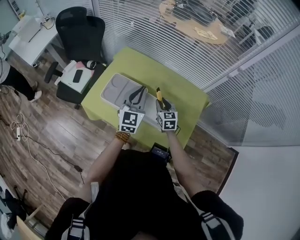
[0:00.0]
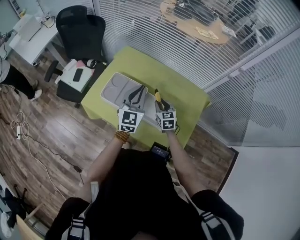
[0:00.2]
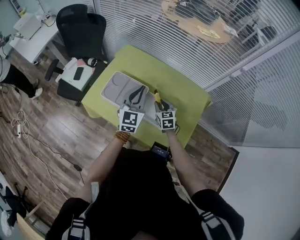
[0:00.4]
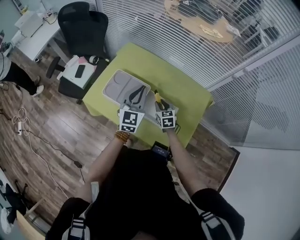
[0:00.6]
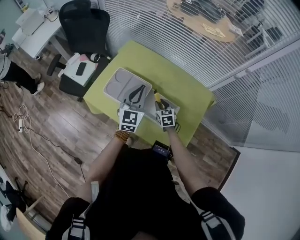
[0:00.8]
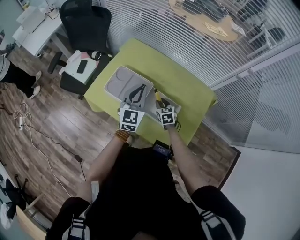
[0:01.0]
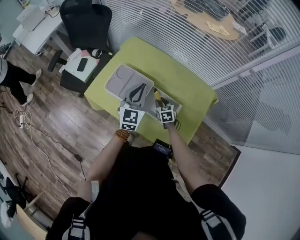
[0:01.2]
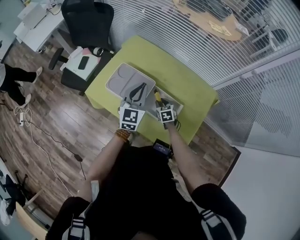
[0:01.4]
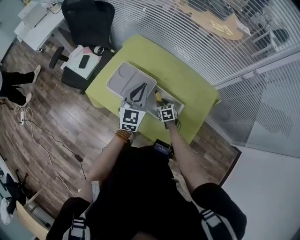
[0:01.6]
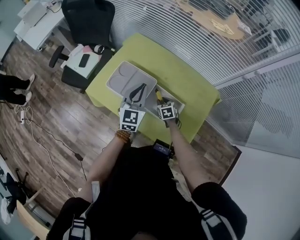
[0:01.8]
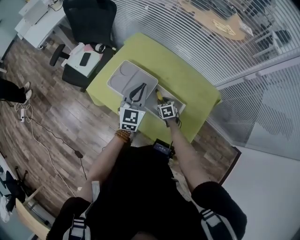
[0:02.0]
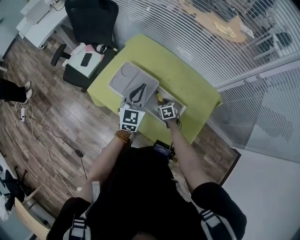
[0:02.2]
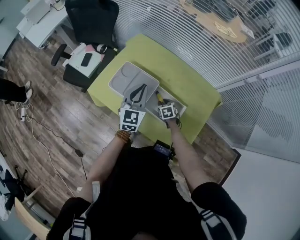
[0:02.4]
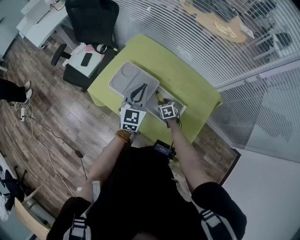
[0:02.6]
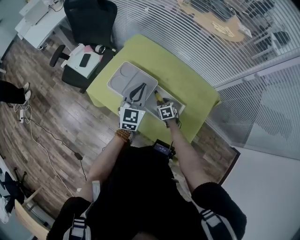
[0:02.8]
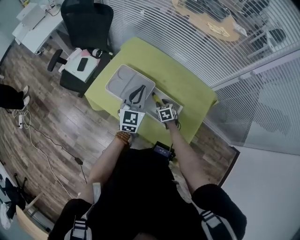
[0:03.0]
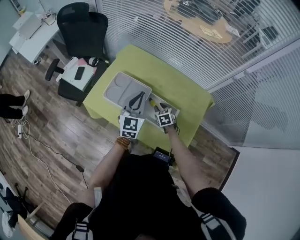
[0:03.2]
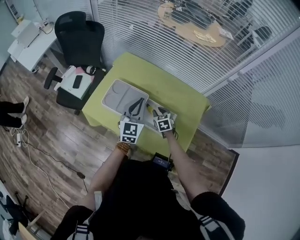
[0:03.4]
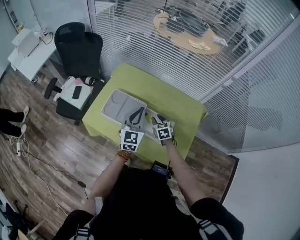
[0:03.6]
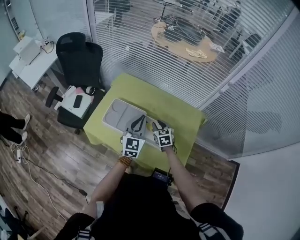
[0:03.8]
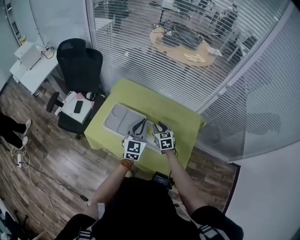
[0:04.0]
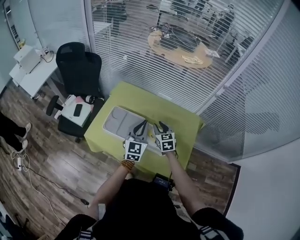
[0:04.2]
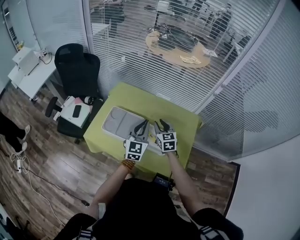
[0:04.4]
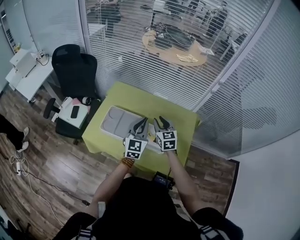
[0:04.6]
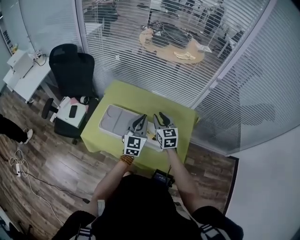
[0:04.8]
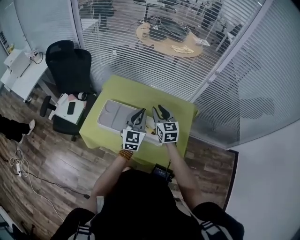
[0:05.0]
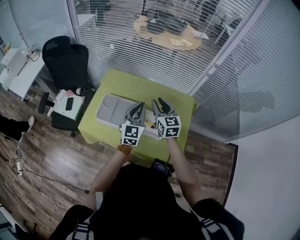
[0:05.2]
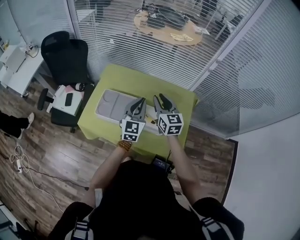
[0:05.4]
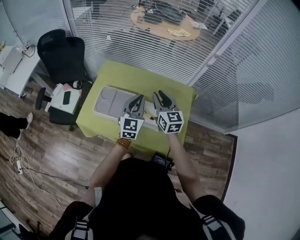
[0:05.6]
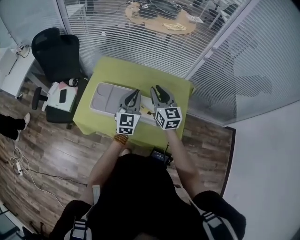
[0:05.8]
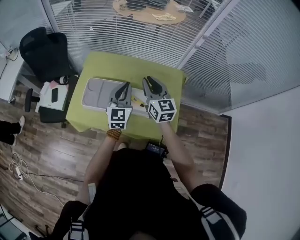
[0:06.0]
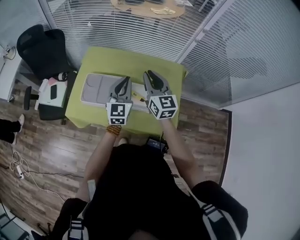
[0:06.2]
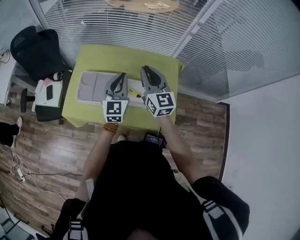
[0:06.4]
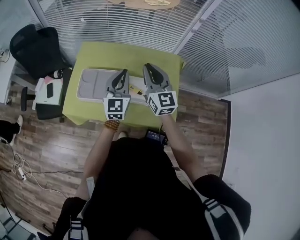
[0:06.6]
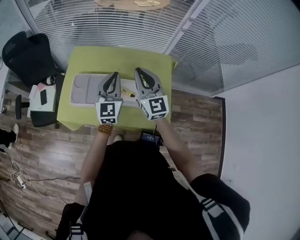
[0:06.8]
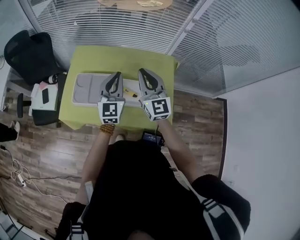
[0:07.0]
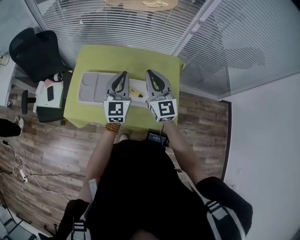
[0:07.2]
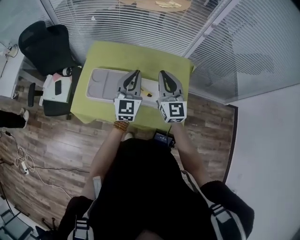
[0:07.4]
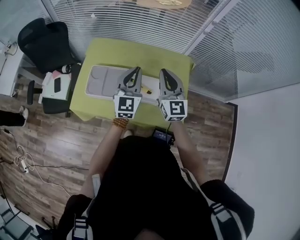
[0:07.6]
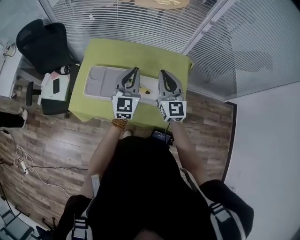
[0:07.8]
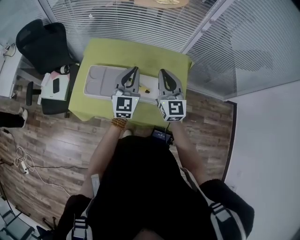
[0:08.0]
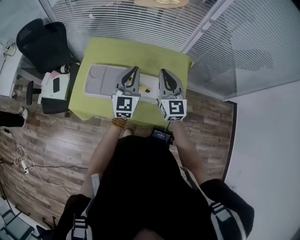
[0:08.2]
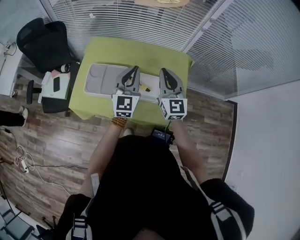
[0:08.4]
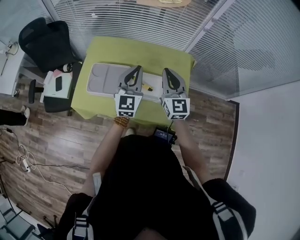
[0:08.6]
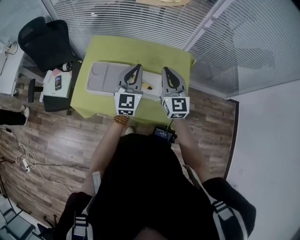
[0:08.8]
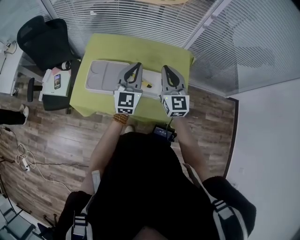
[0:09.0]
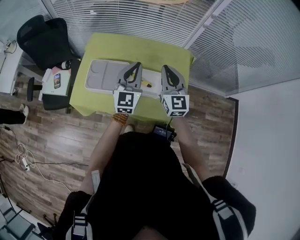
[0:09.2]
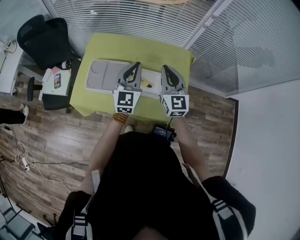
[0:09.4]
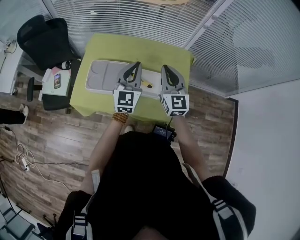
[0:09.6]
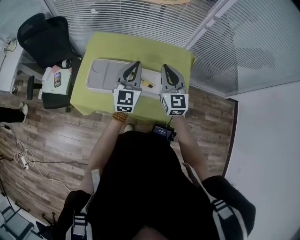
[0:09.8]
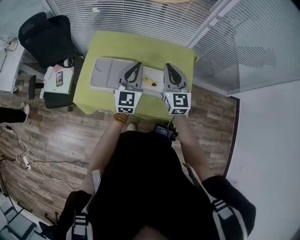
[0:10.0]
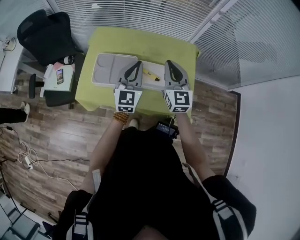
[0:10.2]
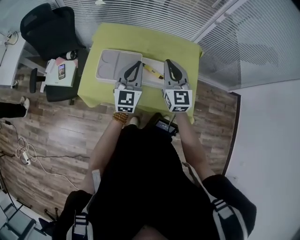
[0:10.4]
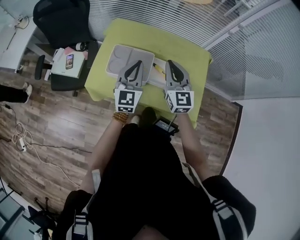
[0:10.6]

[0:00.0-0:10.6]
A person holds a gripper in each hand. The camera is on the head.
0:00.0 to 0:01.6: The right gripper goes approximately 15 cm downward, and rotates about 20 degrees.
0:01.6 to 0:03.0: There are only small adjustments of the grippers.
0:03.0 to 0:04.6: The right gripper goes some 25 cm upward, and angles its fingers upward, by approximately 30 degrees, while the left gripper goes approximately 5 cm to the right.
0:04.6 to 0:06.0: The right gripper travels upward by about 10 cm.
0:06.0 to 0:09.0: The grippers make only small movements.
0:09.0 to 0:10.6: The two grippers go about 10 cm to the left.

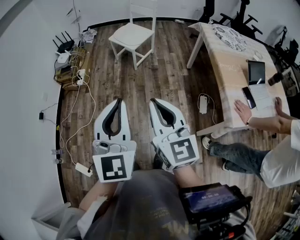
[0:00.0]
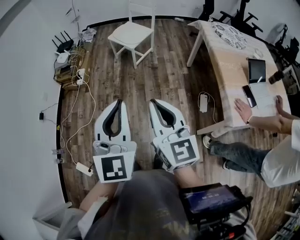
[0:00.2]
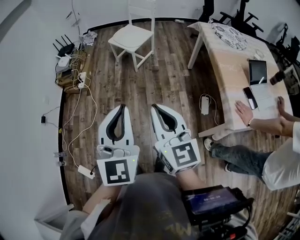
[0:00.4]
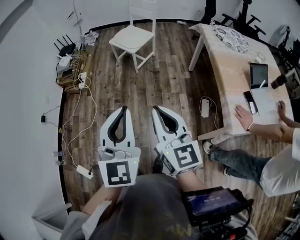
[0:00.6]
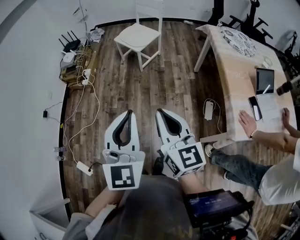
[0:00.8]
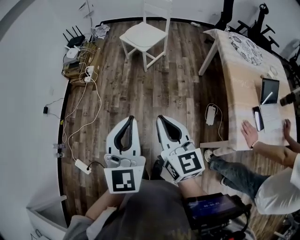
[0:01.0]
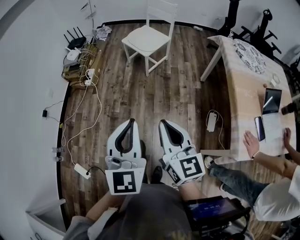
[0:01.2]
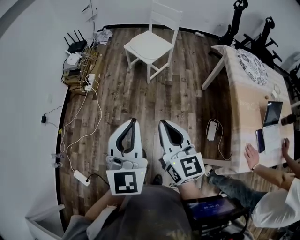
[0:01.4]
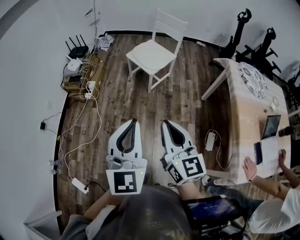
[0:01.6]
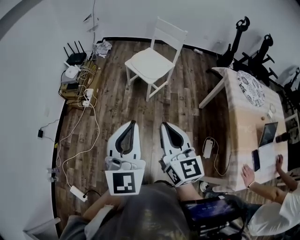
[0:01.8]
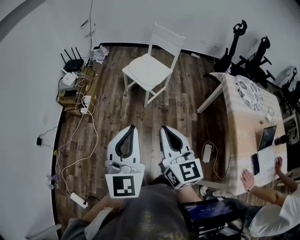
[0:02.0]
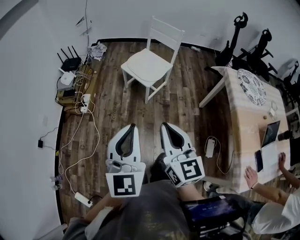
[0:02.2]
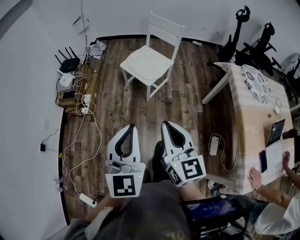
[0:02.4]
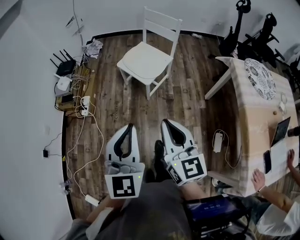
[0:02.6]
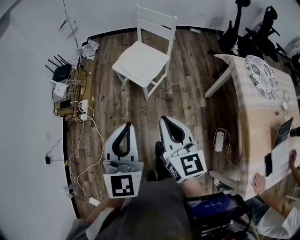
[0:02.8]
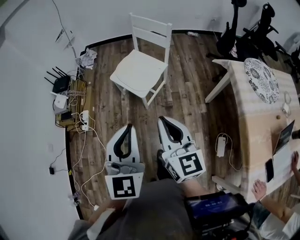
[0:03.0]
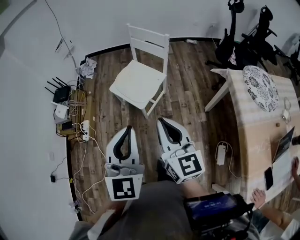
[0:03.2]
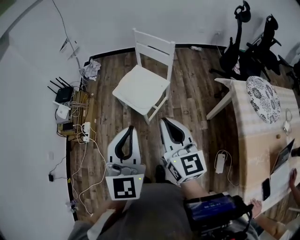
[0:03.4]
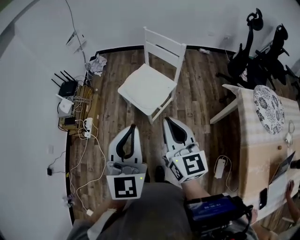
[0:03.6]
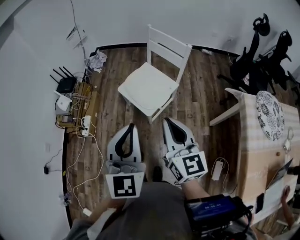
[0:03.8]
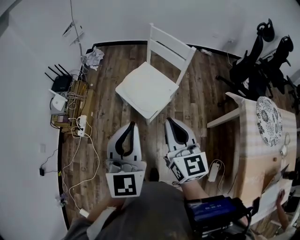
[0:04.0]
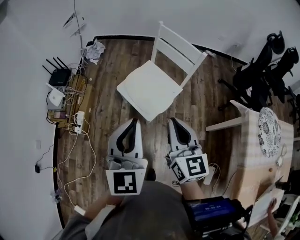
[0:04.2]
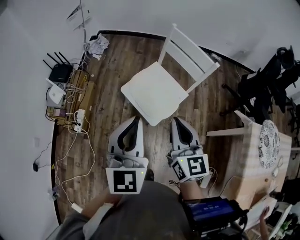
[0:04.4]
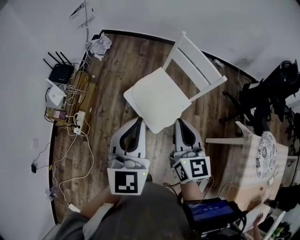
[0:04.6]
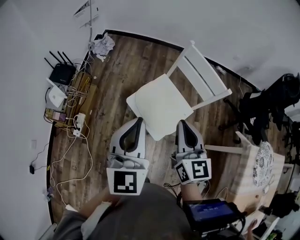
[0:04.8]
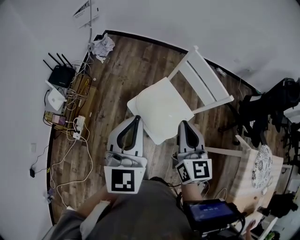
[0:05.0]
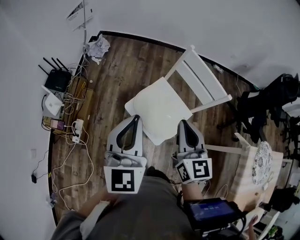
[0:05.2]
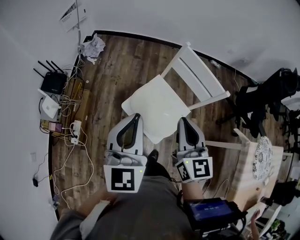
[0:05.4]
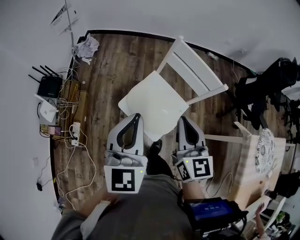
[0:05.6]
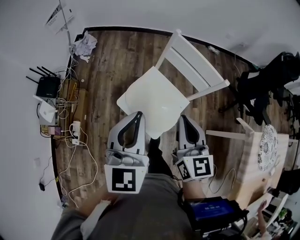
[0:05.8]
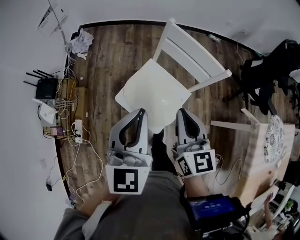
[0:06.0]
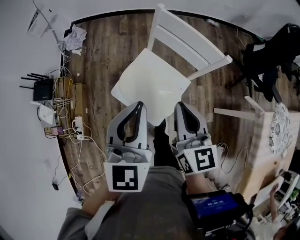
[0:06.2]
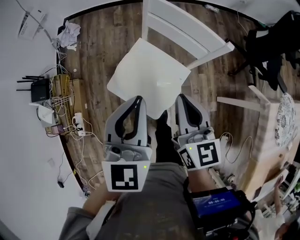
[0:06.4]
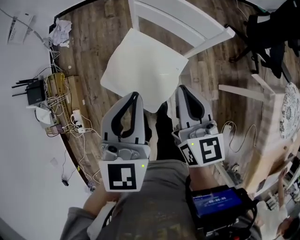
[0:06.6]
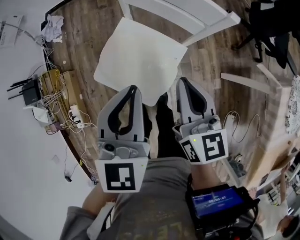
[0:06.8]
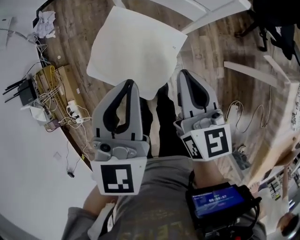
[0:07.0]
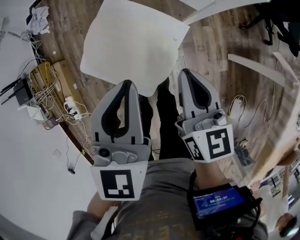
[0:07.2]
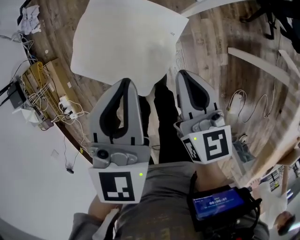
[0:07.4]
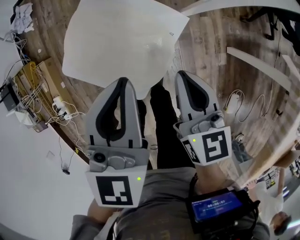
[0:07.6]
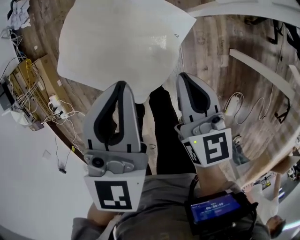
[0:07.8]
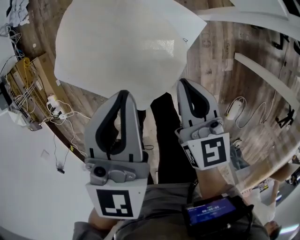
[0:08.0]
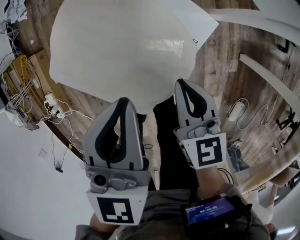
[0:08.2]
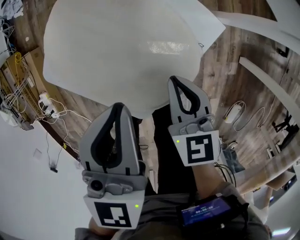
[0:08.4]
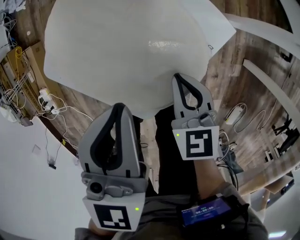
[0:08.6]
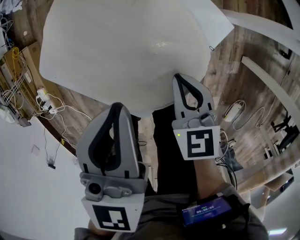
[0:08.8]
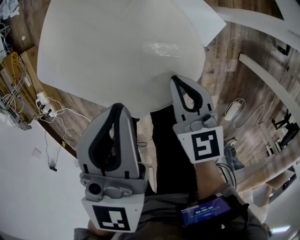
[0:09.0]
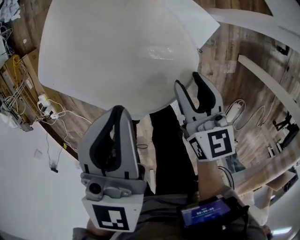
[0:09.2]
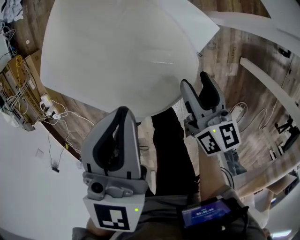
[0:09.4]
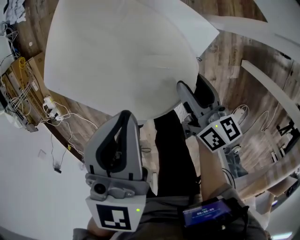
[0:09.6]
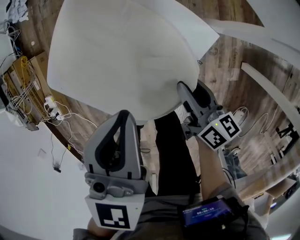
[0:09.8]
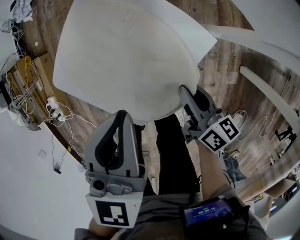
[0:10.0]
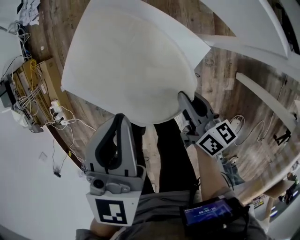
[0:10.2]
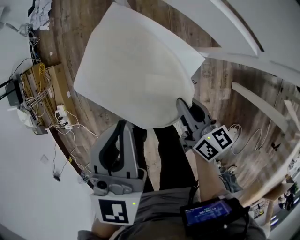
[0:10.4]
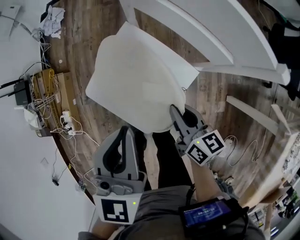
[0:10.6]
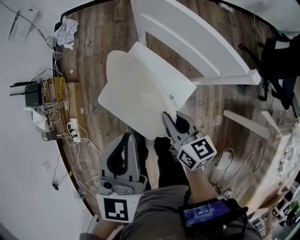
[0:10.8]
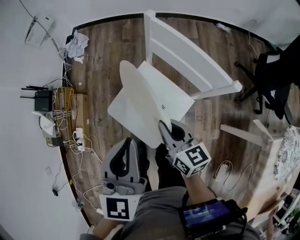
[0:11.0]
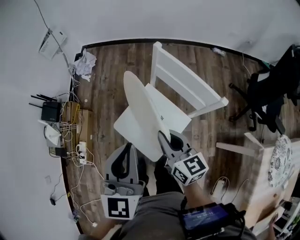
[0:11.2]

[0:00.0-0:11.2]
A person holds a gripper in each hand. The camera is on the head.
0:00.0 to 0:01.6: The grippers both shift forward by roughly 20 cm.
0:01.6 to 0:03.2: Both grippers travel together forward, roughly 30 cm.
0:03.2 to 0:04.8: The left gripper moves forward and to the left, some 35 cm. Meanwhile the right gripper is displaced forward by roughly 35 cm.
0:04.8 to 0:06.4: The left gripper heads forward, to the right and downward, covering about 15 cm. Meanwhile the right gripper goes roughly 15 cm to the right, forward and downward.
0:06.4 to 0:08.0: Both grippers travel together downward, some 30 cm. The right gripper swivels roughly 20 degrees. The left gripper rotates about 20 degrees.
0:08.0 to 0:09.6: The right gripper moves downward, roughly 10 cm, rotates some 30 degrees, and opens its fingers.
0:09.6 to 0:11.2: The left gripper shifts approximately 35 cm upward, and changes its angle by approximately 30 degrees, while the right gripper heads upward and to the left, covering approximately 40 cm, rotates roughly 40 degrees, and closes up.

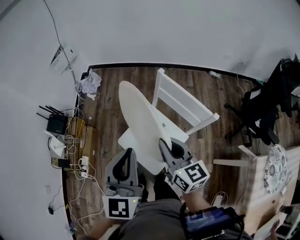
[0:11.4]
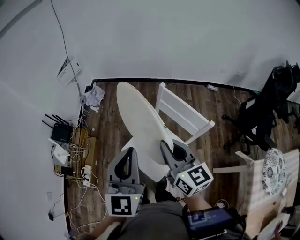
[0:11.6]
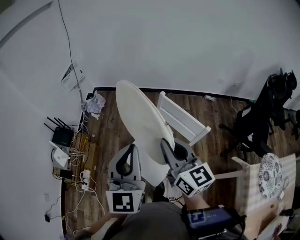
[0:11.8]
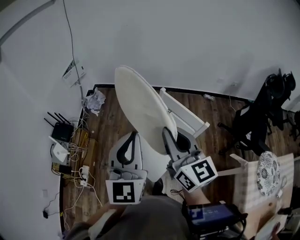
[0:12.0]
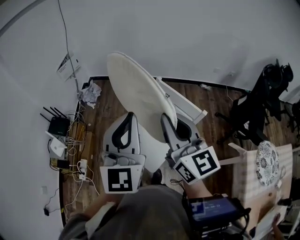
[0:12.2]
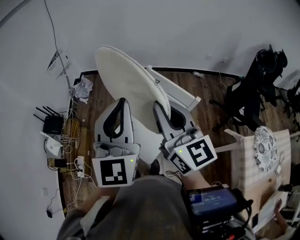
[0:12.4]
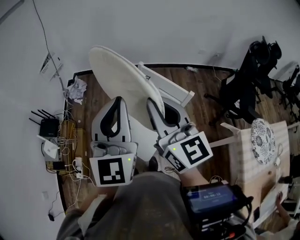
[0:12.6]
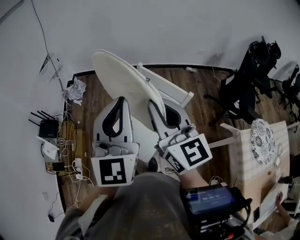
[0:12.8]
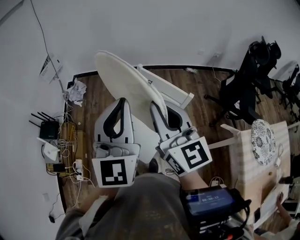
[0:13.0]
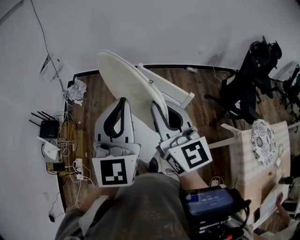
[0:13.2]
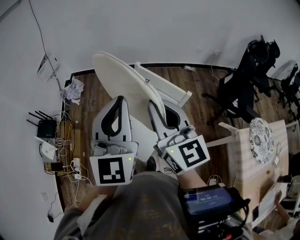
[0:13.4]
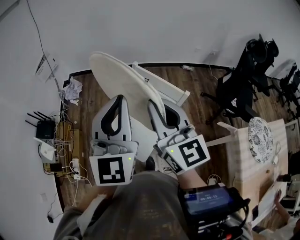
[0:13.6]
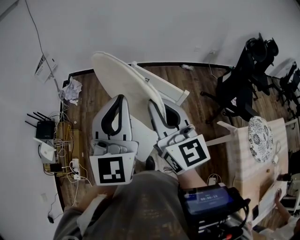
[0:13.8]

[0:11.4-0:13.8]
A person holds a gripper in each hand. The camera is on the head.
0:11.4 to 0:12.6: The grippers both shift upward by some 15 cm. The right gripper rotates approximately 20 degrees.
0:12.6 to 0:13.8: The grippers make only small movements.
